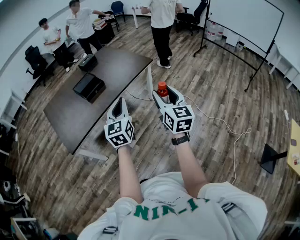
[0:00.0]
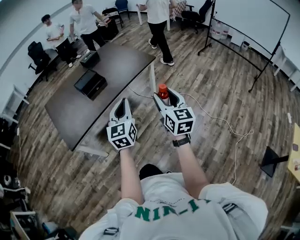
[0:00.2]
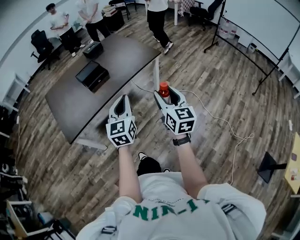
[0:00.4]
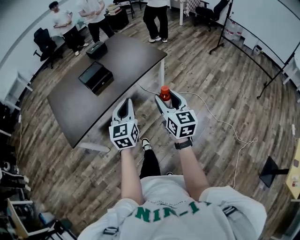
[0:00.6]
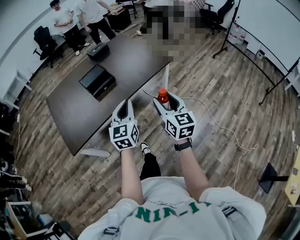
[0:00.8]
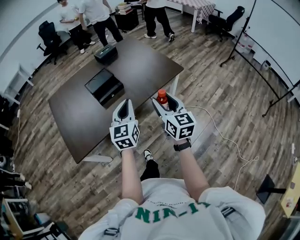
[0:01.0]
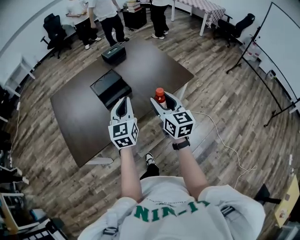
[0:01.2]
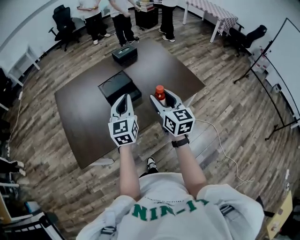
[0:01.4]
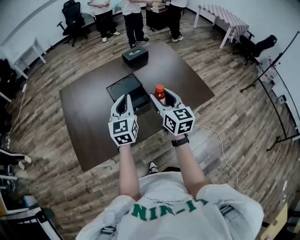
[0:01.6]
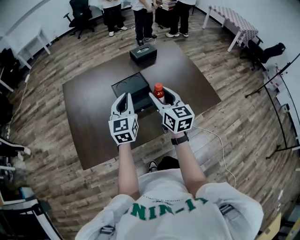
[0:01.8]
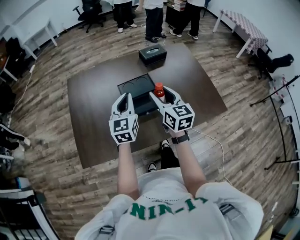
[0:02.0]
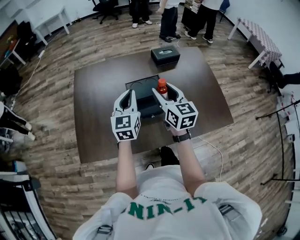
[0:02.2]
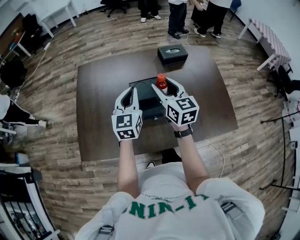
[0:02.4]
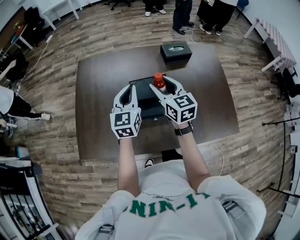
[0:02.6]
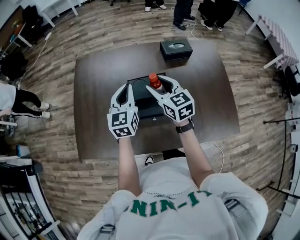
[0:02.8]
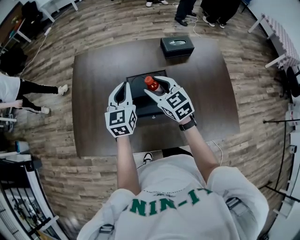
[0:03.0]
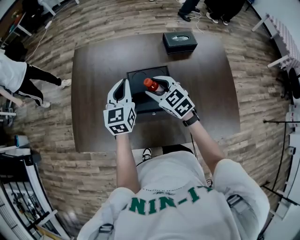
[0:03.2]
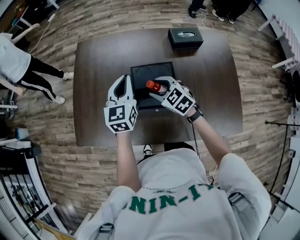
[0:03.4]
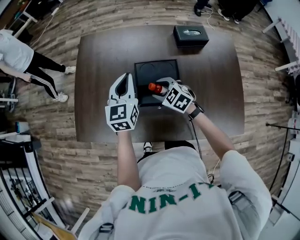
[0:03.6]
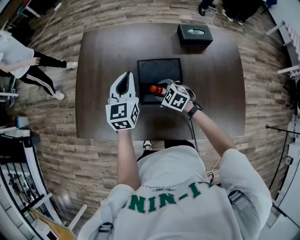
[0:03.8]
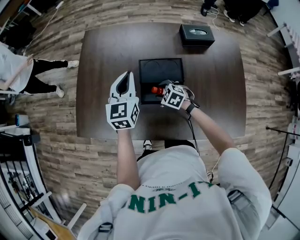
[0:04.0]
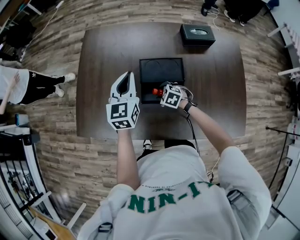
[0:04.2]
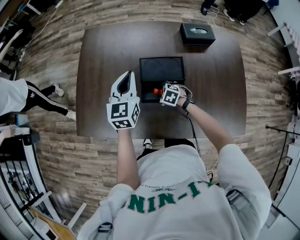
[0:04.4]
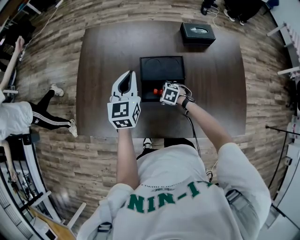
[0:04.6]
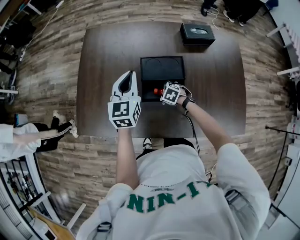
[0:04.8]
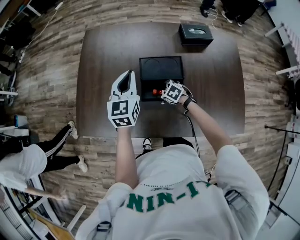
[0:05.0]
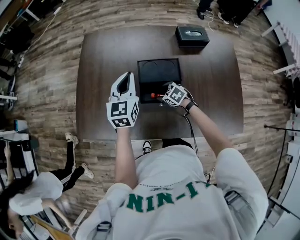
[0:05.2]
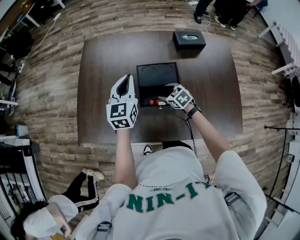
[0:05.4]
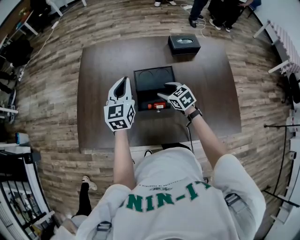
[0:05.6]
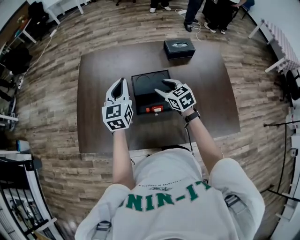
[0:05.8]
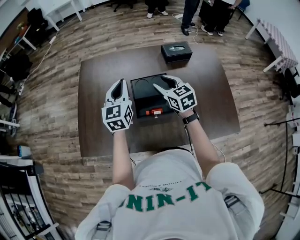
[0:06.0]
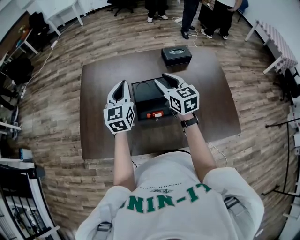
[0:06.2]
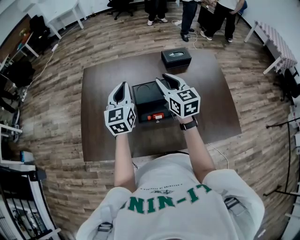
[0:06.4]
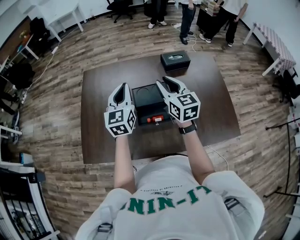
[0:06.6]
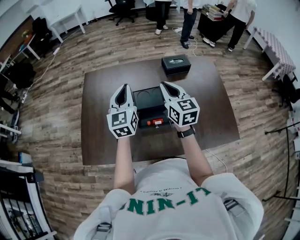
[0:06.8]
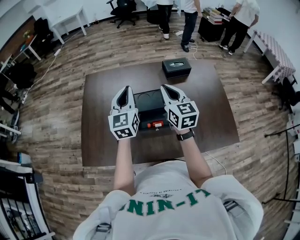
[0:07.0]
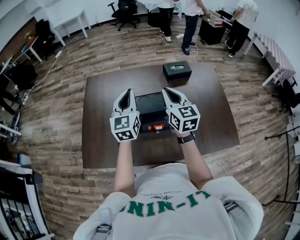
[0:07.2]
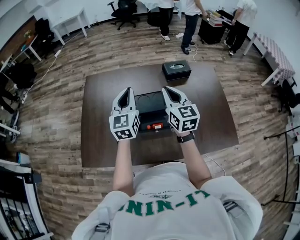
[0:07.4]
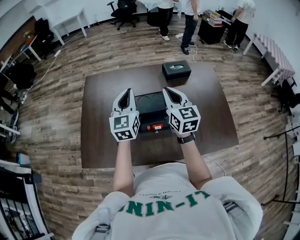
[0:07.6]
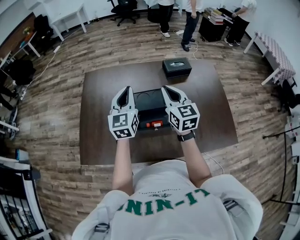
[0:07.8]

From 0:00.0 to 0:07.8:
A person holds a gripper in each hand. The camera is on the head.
From 0:00.0 to 0:01.6: Both grippers are carried forward and to the left, roughly 60 cm. The right gripper turns by about 30 degrees.
From 0:01.6 to 0:03.2: The right gripper ends up approximately 30 cm from where it was, and swivels some 60 degrees. The left gripper changes place by roughly 25 cm, and rotates about 20 degrees.
From 0:03.2 to 0:04.6: The right gripper is displaced downward by about 25 cm, and angles its fingers downward, by roughly 40 degrees.
From 0:04.6 to 0:06.2: The right gripper heads upward, covering some 35 cm, and tilts its fingers approximately 50 degrees upward. The left gripper goes some 10 cm upward.
From 0:06.2 to 0:07.8: The right gripper ends up approximately 5 cm from where it was, and closes.

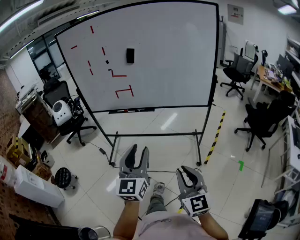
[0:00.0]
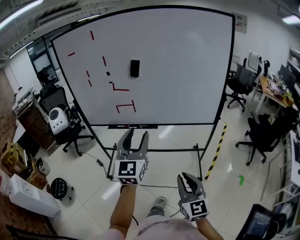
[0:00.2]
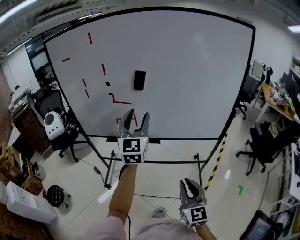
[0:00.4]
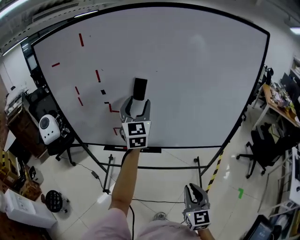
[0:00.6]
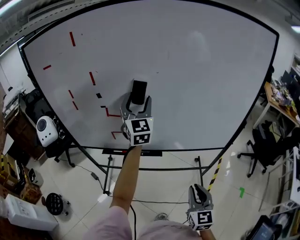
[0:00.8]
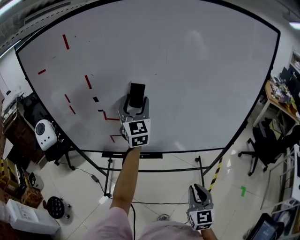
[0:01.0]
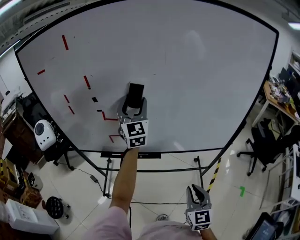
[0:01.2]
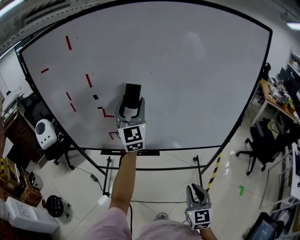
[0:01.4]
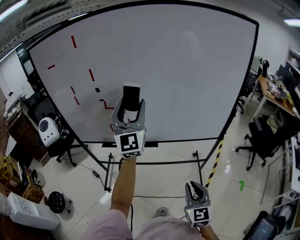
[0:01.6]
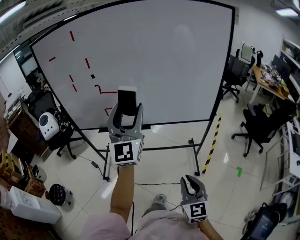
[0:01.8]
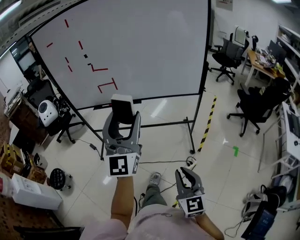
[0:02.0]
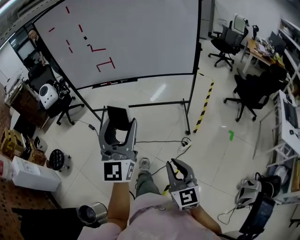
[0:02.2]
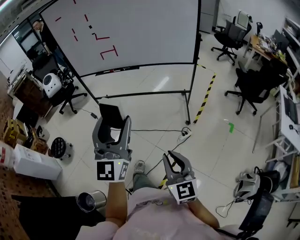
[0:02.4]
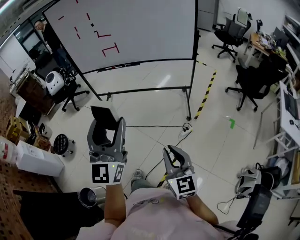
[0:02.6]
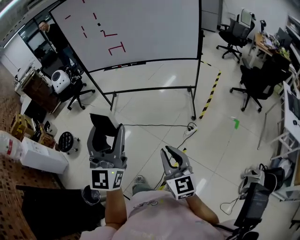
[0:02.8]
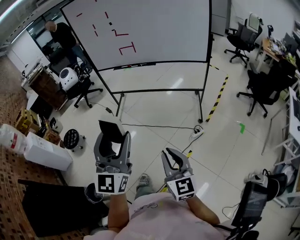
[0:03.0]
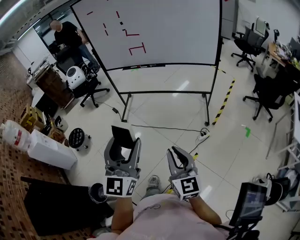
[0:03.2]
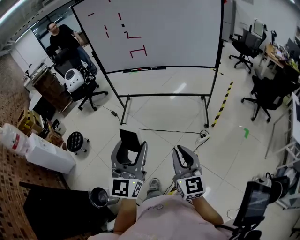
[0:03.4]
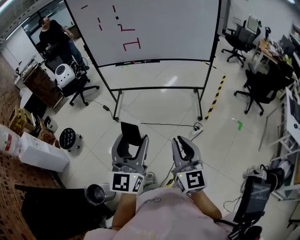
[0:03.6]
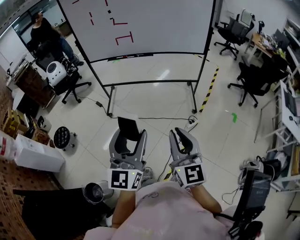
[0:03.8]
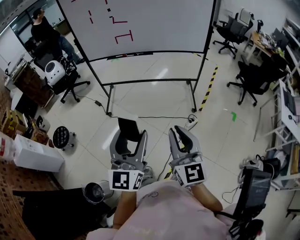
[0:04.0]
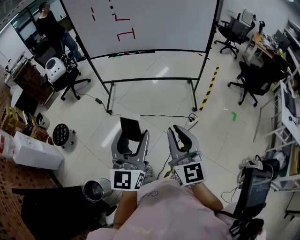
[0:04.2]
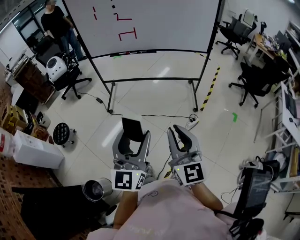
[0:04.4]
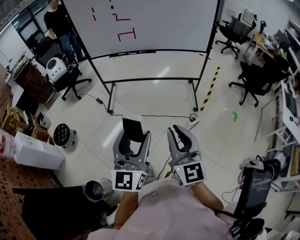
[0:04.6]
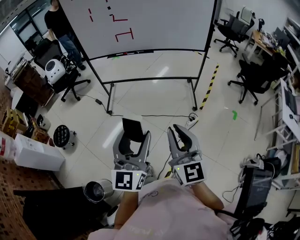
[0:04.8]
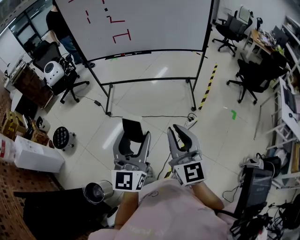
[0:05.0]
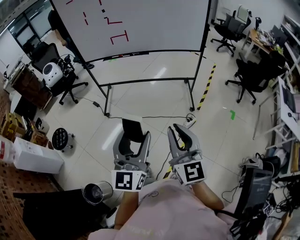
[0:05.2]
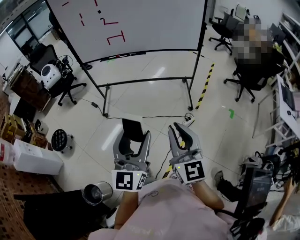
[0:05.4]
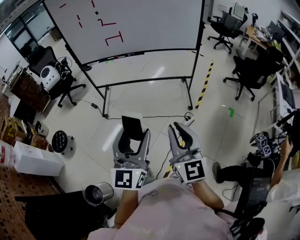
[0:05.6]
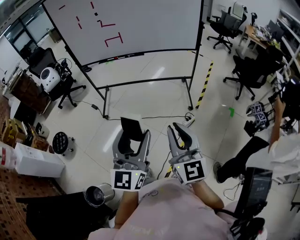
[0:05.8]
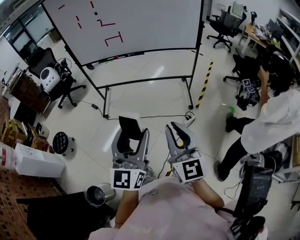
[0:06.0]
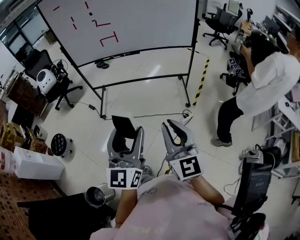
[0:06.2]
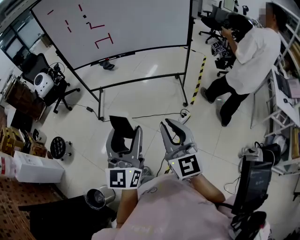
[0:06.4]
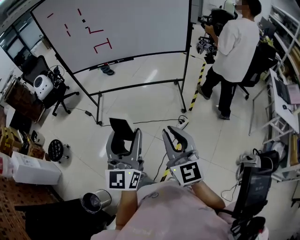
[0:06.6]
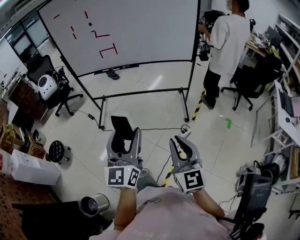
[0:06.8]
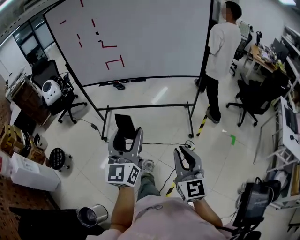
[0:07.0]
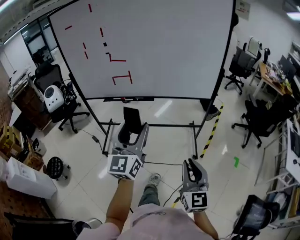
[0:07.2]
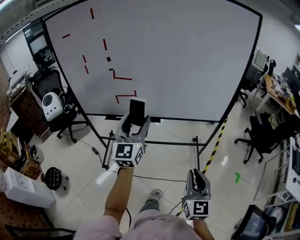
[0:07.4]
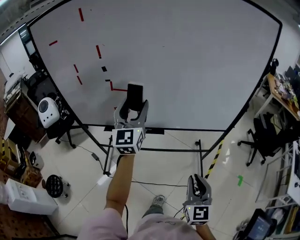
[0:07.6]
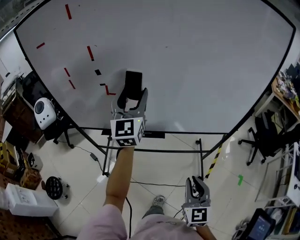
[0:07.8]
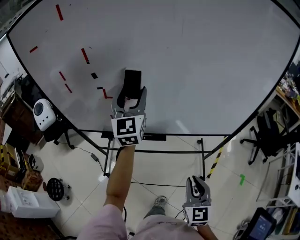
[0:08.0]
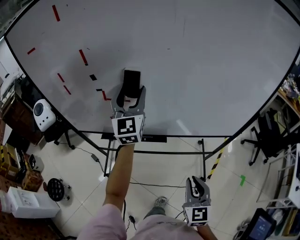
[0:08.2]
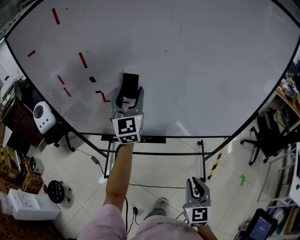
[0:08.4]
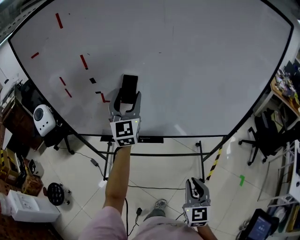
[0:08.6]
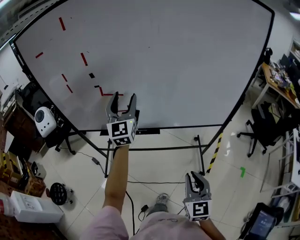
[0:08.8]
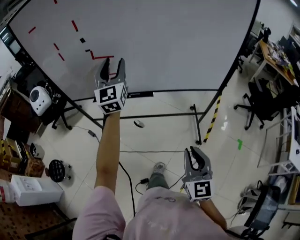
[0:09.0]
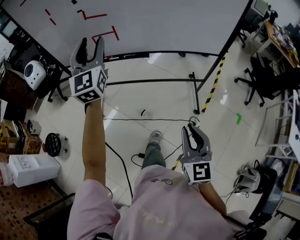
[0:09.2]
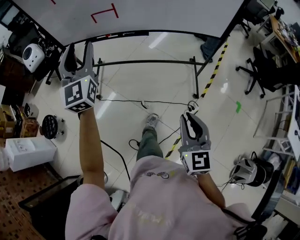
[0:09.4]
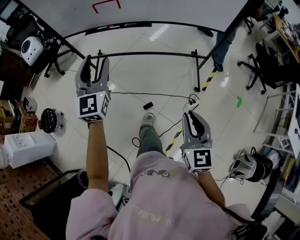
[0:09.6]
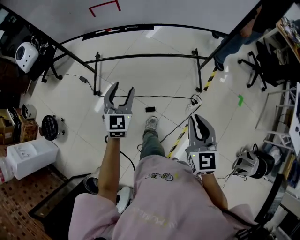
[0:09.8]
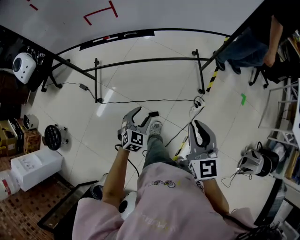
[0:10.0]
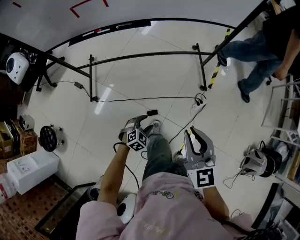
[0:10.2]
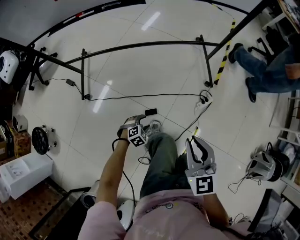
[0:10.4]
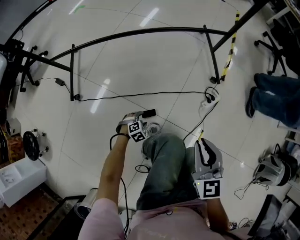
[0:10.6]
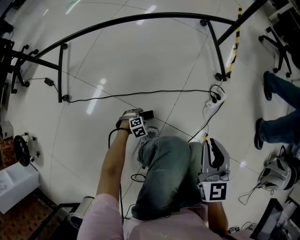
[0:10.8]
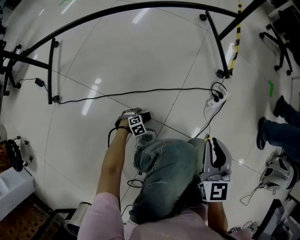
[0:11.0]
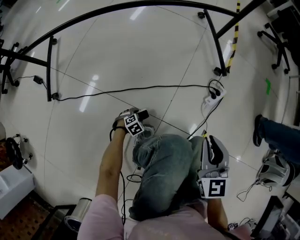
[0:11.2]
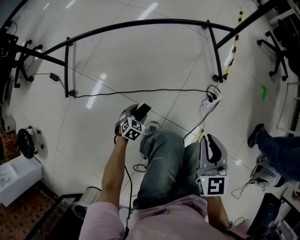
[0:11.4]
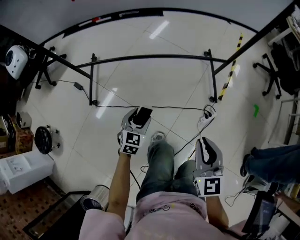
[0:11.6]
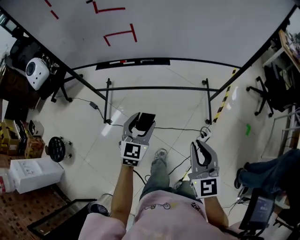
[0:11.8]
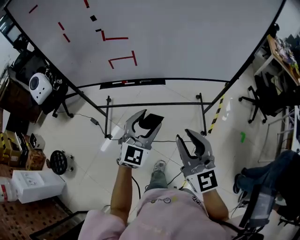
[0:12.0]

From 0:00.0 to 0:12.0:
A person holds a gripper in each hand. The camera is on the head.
From 0:00.0 to 0:01.6: The left gripper goes approximately 40 cm forward, turns by approximately 20 degrees, and opens, while the right gripper shifts roughly 30 cm forward.
From 0:01.6 to 0:03.0: The pair of grippers is taken backward, some 60 cm. The right gripper turns by approximately 20 degrees.
From 0:03.0 to 0:04.4: The right gripper travels to the left and upward by some 10 cm; the left gripper goes approximately 10 cm to the left and downward.
From 0:04.4 to 0:06.0: The grippers both shift to the right by roughly 5 cm.
From 0:06.0 to 0:07.6: The two grippers travel together, forward, about 60 cm.
From 0:07.6 to 0:09.0: The left gripper goes forward and returns, some 15 cm each way, while the right gripper shifts roughly 5 cm backward.
From 0:09.0 to 0:10.4: The right gripper is displaced downward by approximately 35 cm; the left gripper moves downward, roughly 90 cm, and tilts its fingers some 80 degrees downward.
From 0:10.4 to 0:12.0: The left gripper is displaced upward by approximately 70 cm, and points its fingers approximately 60 degrees further upward. Meanwhile the right gripper travels upward by approximately 40 cm, and changes its angle by approximately 20 degrees.

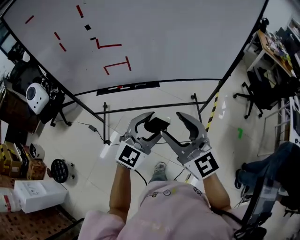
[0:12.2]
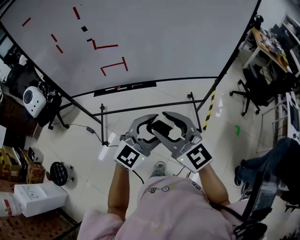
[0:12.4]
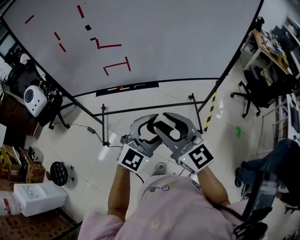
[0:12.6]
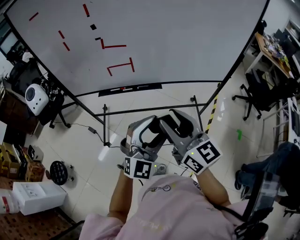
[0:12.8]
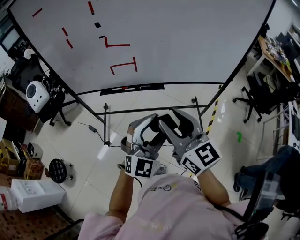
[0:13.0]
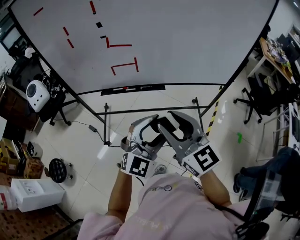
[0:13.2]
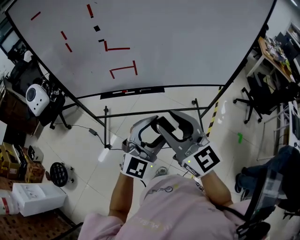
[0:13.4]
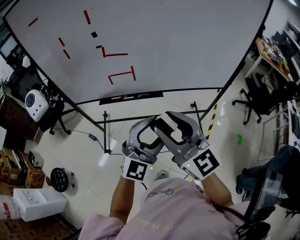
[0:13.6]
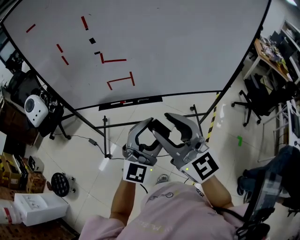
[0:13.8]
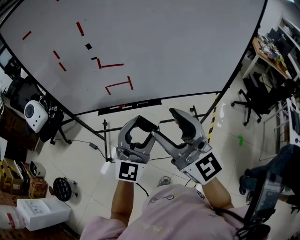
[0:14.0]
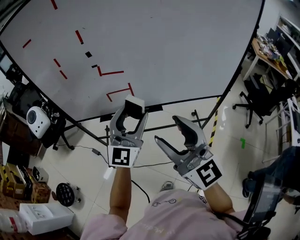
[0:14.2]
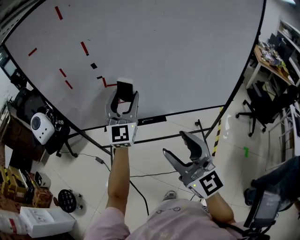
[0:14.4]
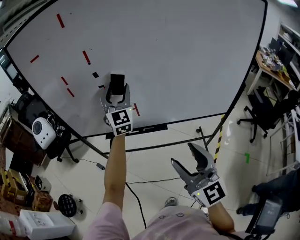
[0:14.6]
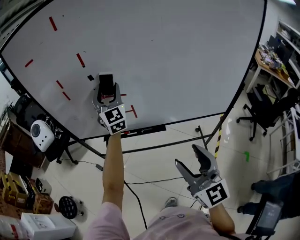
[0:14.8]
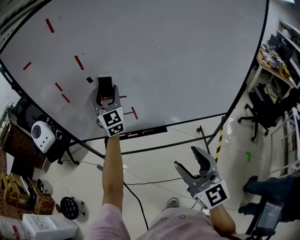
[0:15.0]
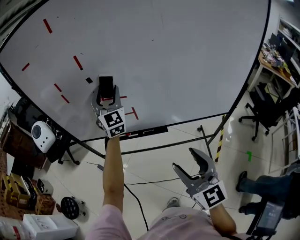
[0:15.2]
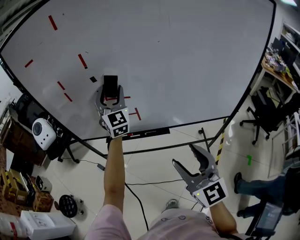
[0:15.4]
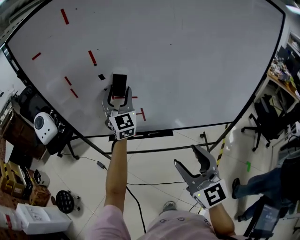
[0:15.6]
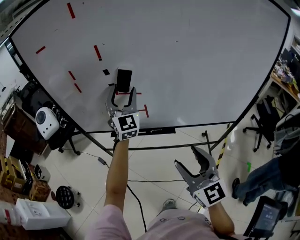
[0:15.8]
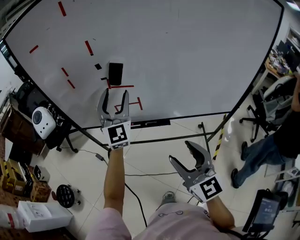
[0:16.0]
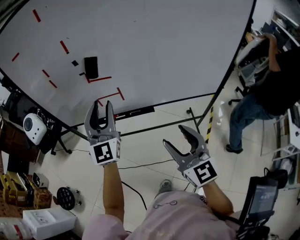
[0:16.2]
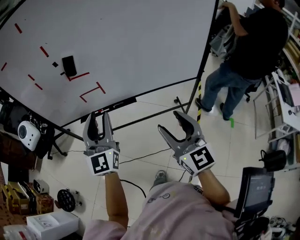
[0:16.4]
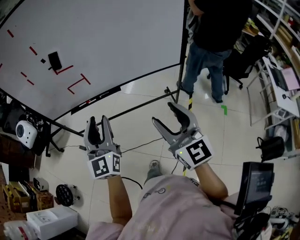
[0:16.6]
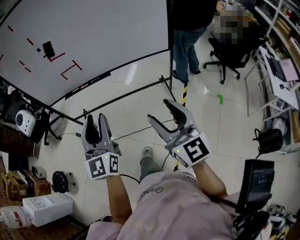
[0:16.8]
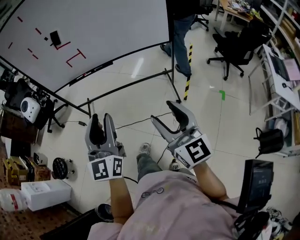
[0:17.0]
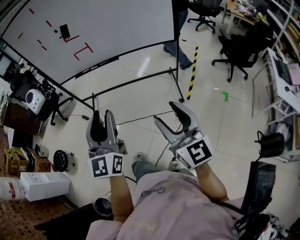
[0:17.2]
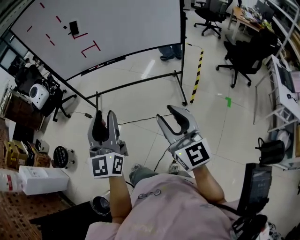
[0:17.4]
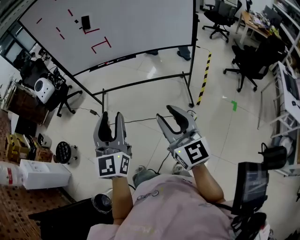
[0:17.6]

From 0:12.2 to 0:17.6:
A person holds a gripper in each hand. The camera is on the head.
From 0:12.2 to 0:13.6: The left gripper heads upward, covering roughly 5 cm. Meanwhile the right gripper goes roughly 5 cm to the left.
From 0:13.6 to 0:15.0: The left gripper travels forward by some 35 cm, and swivels approximately 40 degrees, while the right gripper shifts some 10 cm to the right.
From 0:15.0 to 0:16.2: The left gripper moves backward, some 20 cm, and closes up.
From 0:16.2 to 0:17.6: The pair of grippers is taken backward, approximately 50 cm. The right gripper closes.
